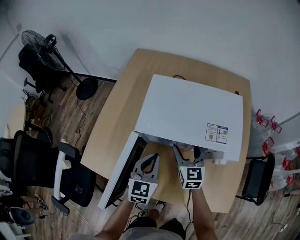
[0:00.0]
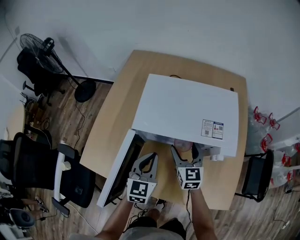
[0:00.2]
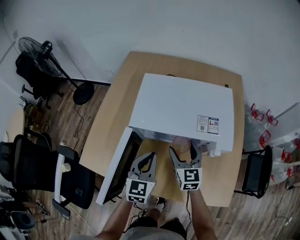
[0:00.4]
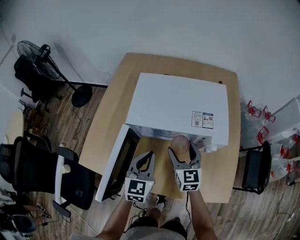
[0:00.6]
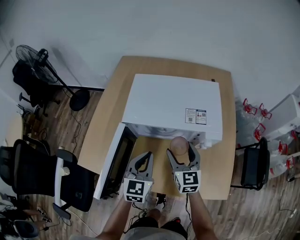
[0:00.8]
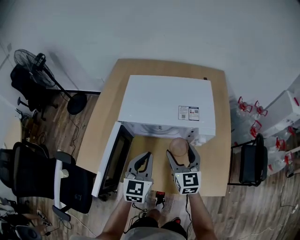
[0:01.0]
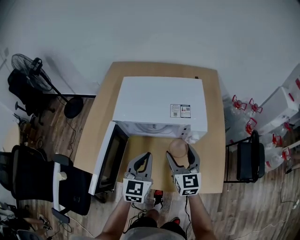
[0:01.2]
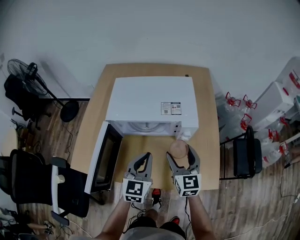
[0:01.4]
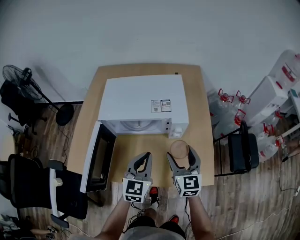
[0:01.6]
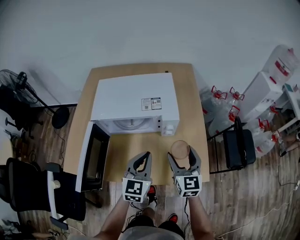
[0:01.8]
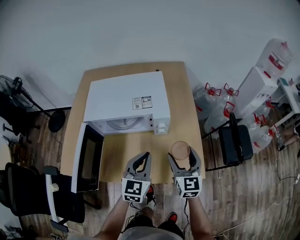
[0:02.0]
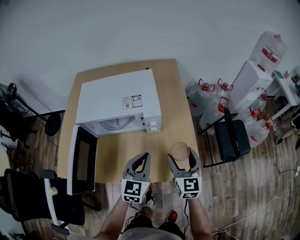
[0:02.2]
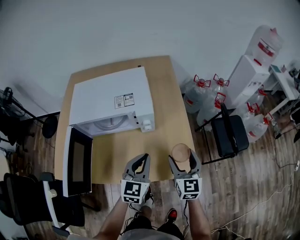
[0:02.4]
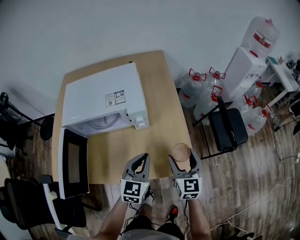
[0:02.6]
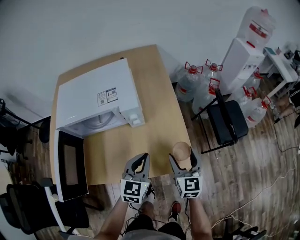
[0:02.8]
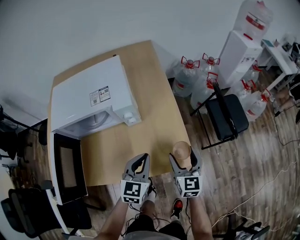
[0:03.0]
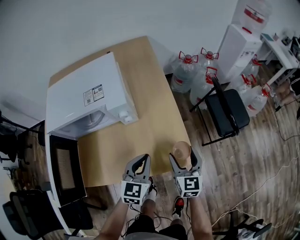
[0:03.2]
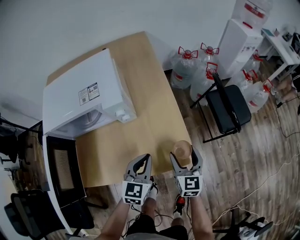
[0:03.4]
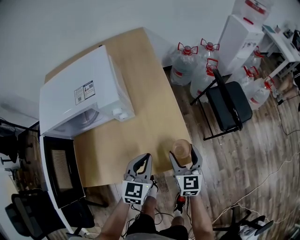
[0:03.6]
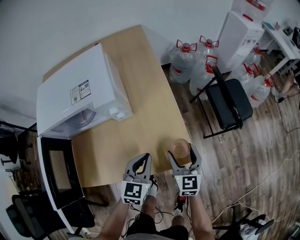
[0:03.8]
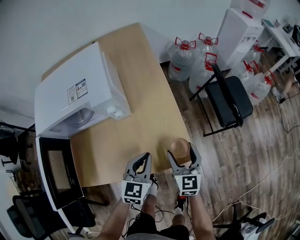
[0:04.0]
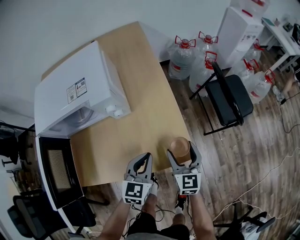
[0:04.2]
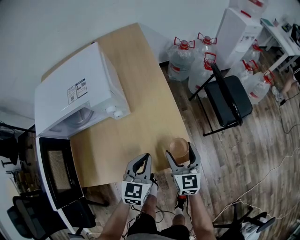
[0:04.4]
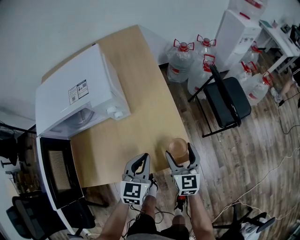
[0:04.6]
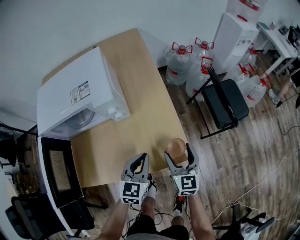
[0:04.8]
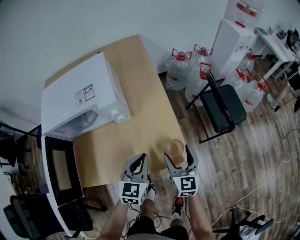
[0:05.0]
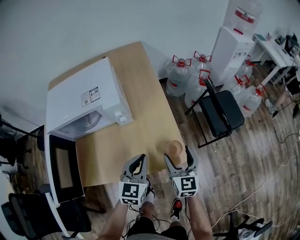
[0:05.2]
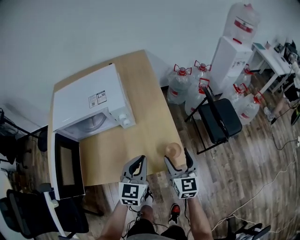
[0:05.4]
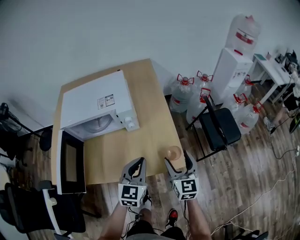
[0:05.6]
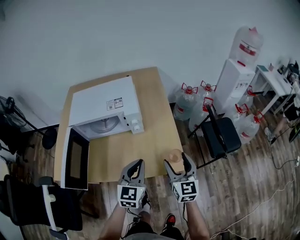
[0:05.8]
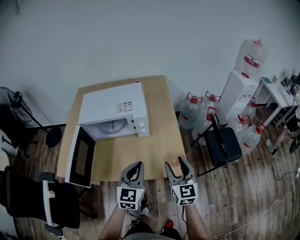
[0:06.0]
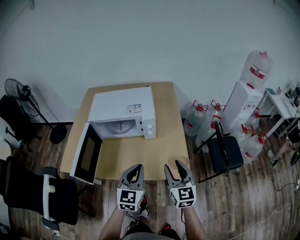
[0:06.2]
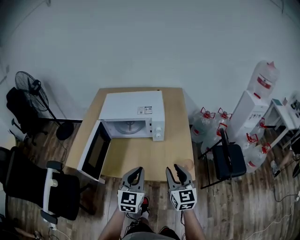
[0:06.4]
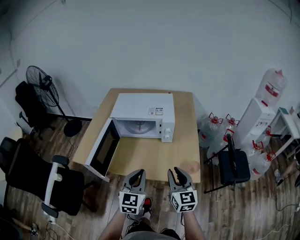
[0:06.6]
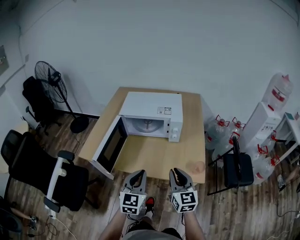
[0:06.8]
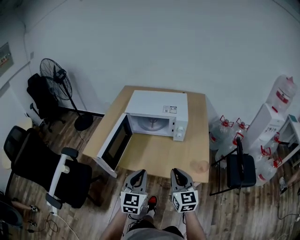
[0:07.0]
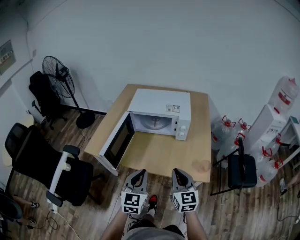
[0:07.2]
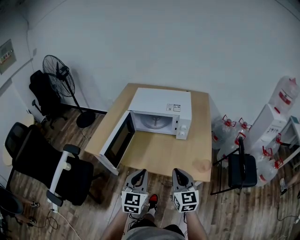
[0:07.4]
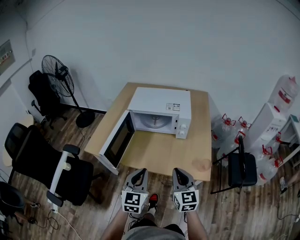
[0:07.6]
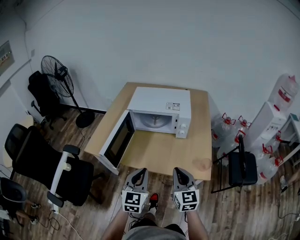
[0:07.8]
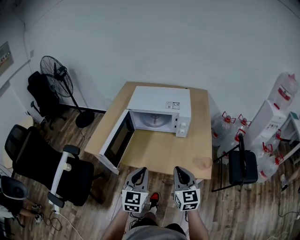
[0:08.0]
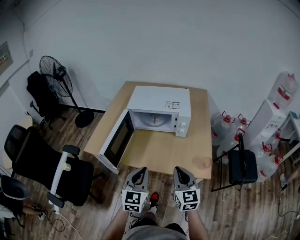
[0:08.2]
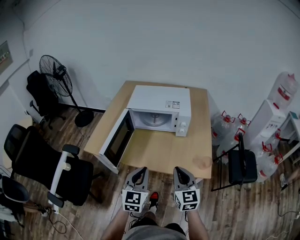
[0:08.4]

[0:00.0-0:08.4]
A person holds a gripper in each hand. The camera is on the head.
0:00.0 to 0:01.4: The left gripper heads to the right, backward and upward, covering some 15 cm; the right gripper heads backward, to the right and upward, covering approximately 20 cm.
0:01.4 to 0:02.8: The two grippers go about 20 cm to the right. The right gripper turns by about 20 degrees.
0:02.8 to 0:04.2: The left gripper goes some 10 cm downward and to the right. The right gripper shifts approximately 10 cm downward.
0:04.2 to 0:05.6: Both grippers move upward, approximately 15 cm.
0:05.6 to 0:07.0: The left gripper moves some 25 cm, and changes its angle by roughly 30 degrees. Meanwhile the right gripper ends up roughly 25 cm from where it was, swivels about 30 degrees, and closes its fingers.
0:07.0 to 0:08.4: Both grippers stay about where they are.

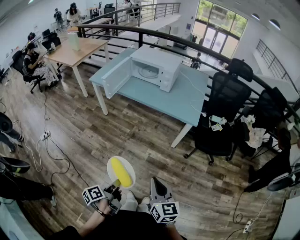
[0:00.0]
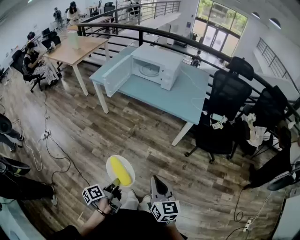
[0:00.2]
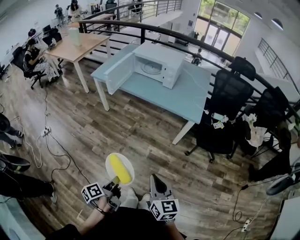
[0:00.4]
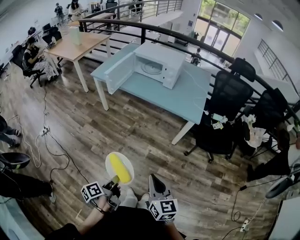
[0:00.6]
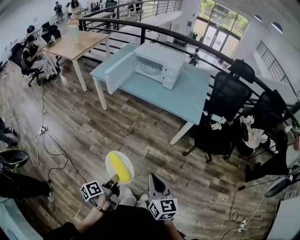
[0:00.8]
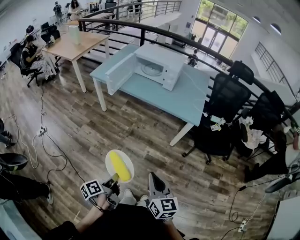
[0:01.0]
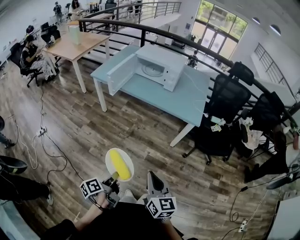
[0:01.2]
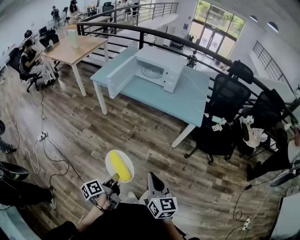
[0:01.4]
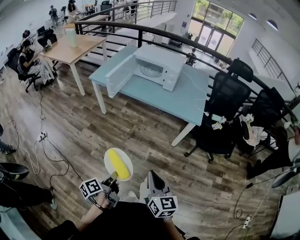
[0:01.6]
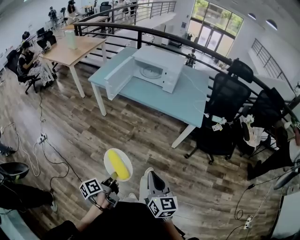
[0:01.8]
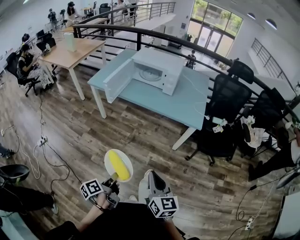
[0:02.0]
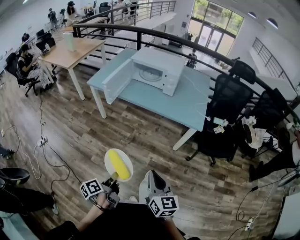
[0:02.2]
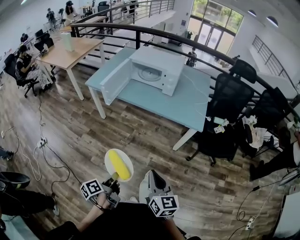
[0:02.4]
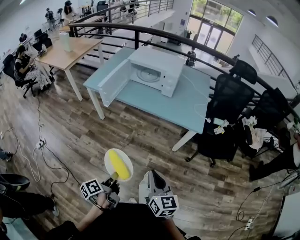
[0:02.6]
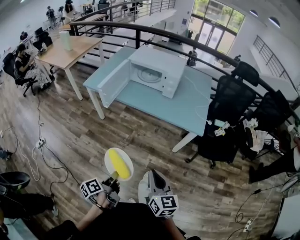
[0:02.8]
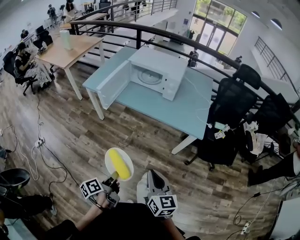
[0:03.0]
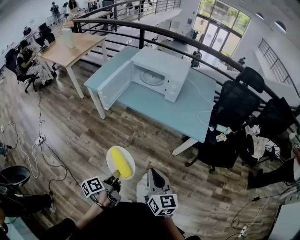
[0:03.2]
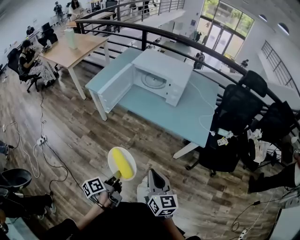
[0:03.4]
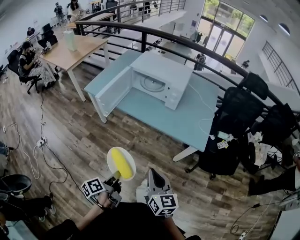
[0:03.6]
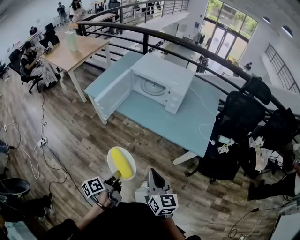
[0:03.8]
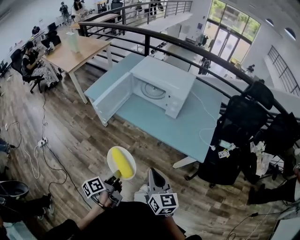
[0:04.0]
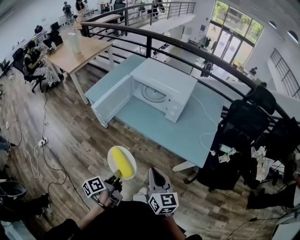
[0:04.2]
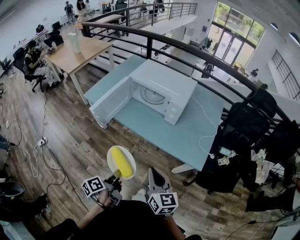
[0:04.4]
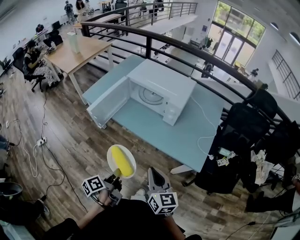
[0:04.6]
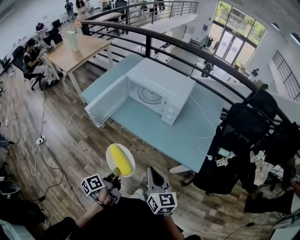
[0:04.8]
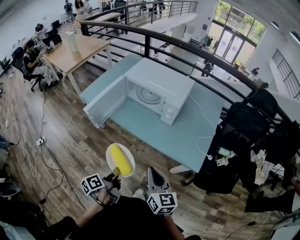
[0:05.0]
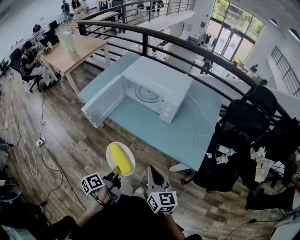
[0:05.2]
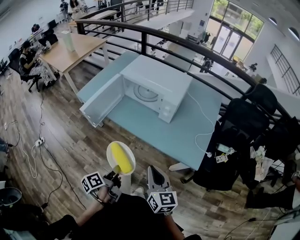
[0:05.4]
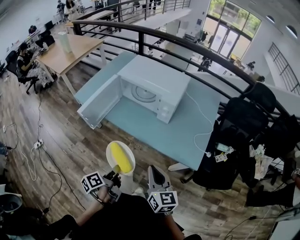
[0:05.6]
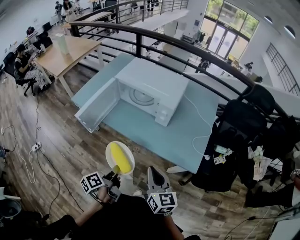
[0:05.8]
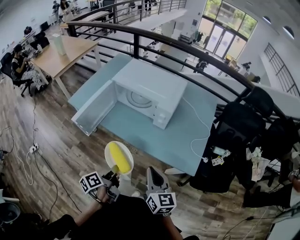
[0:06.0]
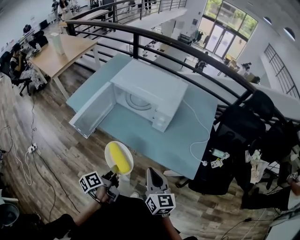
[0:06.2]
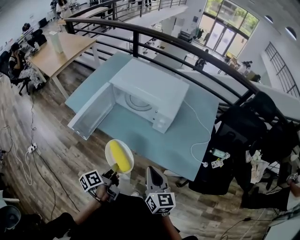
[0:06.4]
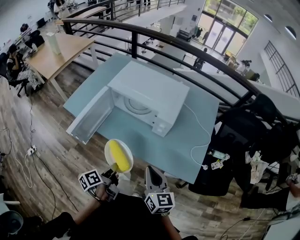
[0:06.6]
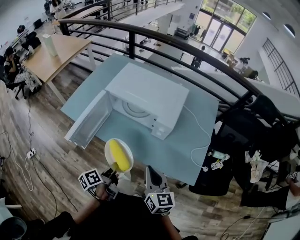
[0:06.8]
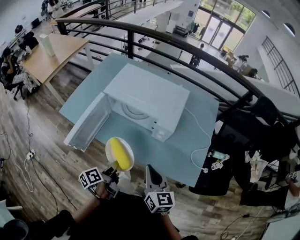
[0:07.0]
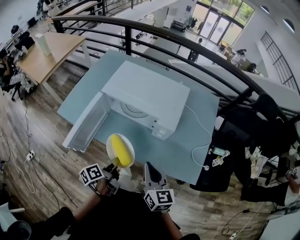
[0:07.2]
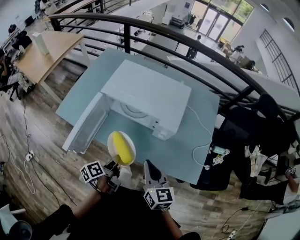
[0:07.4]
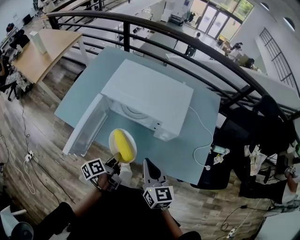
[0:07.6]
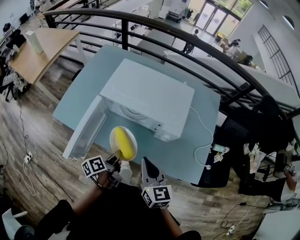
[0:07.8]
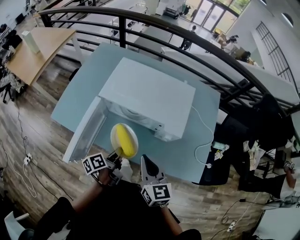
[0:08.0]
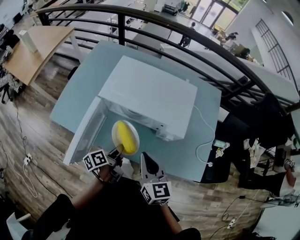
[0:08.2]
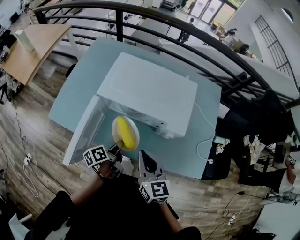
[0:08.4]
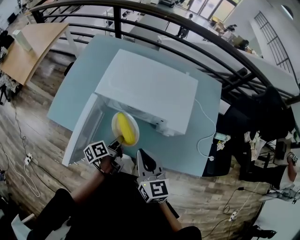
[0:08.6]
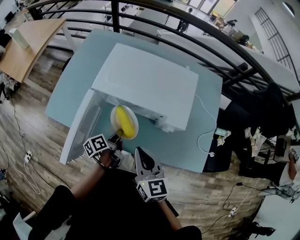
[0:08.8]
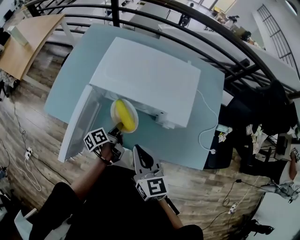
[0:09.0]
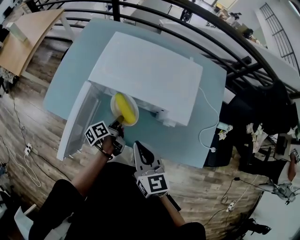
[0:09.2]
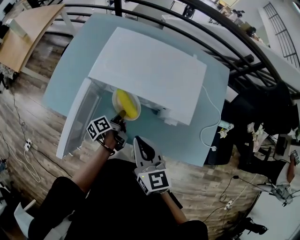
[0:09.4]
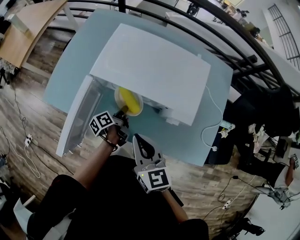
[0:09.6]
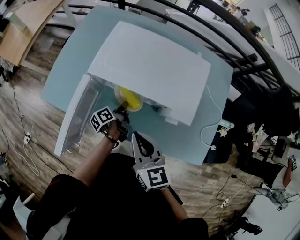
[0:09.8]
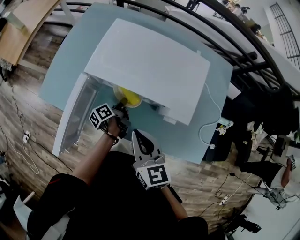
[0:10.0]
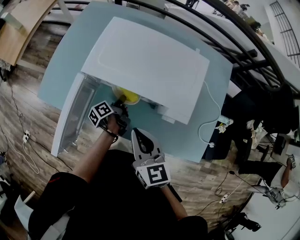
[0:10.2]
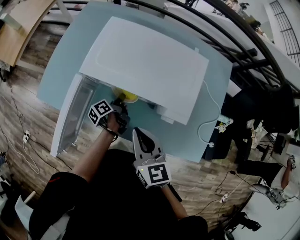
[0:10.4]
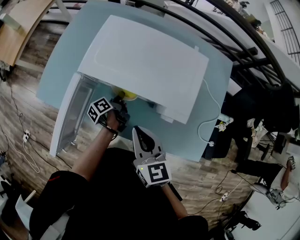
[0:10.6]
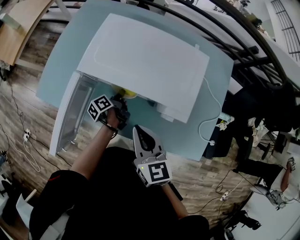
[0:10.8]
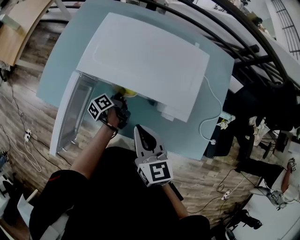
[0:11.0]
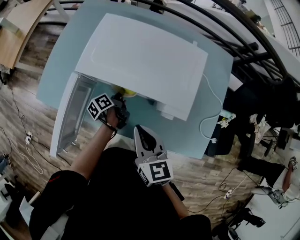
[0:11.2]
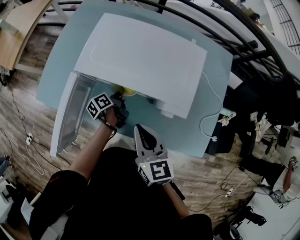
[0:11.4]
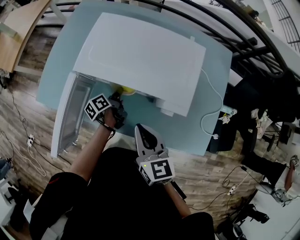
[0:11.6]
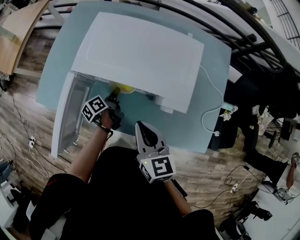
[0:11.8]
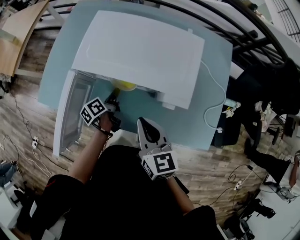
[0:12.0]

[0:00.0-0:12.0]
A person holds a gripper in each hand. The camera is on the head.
0:00.0 to 0:01.6: The right gripper shifts by approximately 10 cm.
0:01.6 to 0:03.0: The right gripper ends up some 15 cm from where it was.
0:03.0 to 0:04.4: The right gripper shifts by some 20 cm.
0:04.4 to 0:06.0: The right gripper changes place by about 10 cm.
0:06.0 to 0:07.6: The right gripper shifts by some 20 cm.
0:07.6 to 0:09.0: The right gripper moves approximately 10 cm.
0:09.0 to 0:10.4: The right gripper ends up about 5 cm from where it was.

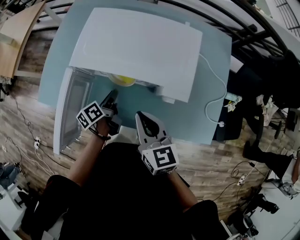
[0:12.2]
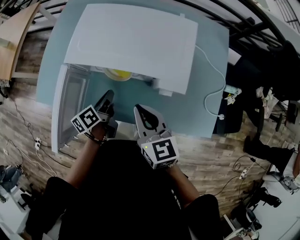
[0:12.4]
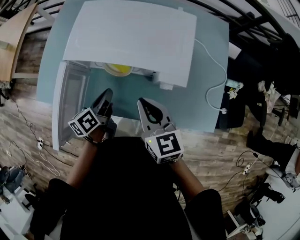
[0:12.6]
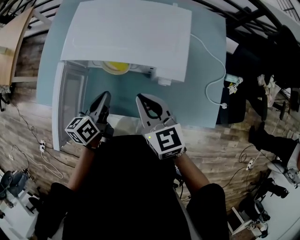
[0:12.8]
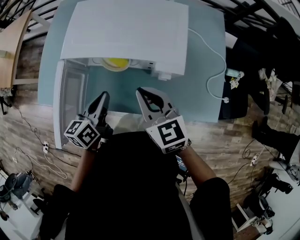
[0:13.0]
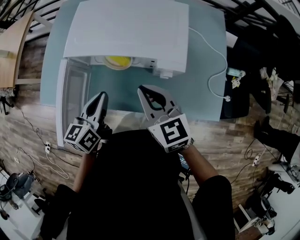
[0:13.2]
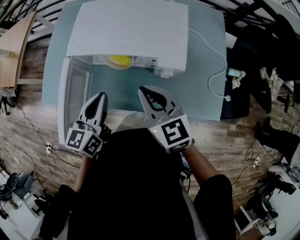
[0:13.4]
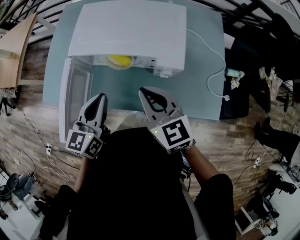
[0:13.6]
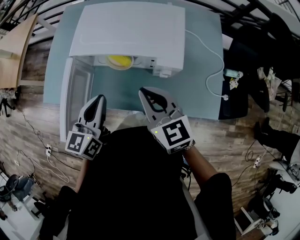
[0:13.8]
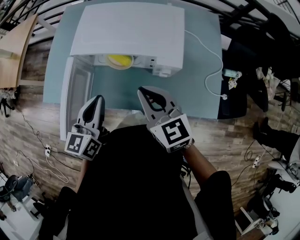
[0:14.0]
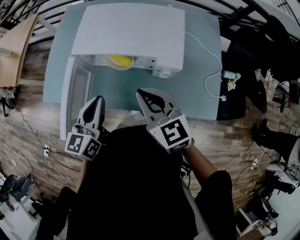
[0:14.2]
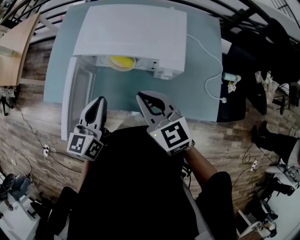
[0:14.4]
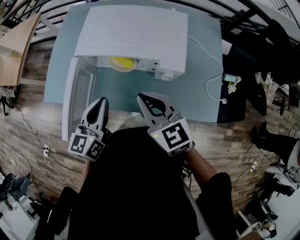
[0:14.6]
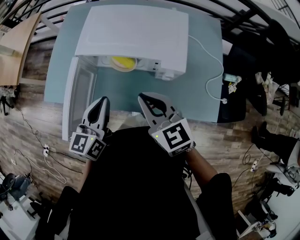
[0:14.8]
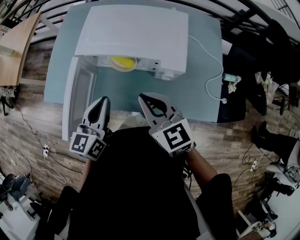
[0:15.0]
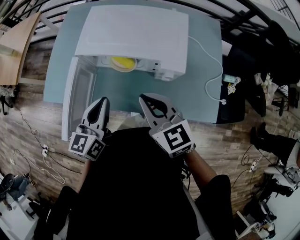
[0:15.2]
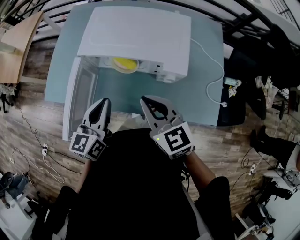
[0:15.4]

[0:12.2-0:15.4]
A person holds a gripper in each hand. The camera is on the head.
0:12.2 to 0:13.8: The right gripper is displaced upward by about 5 cm.
